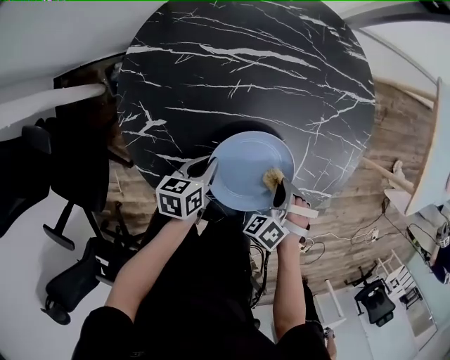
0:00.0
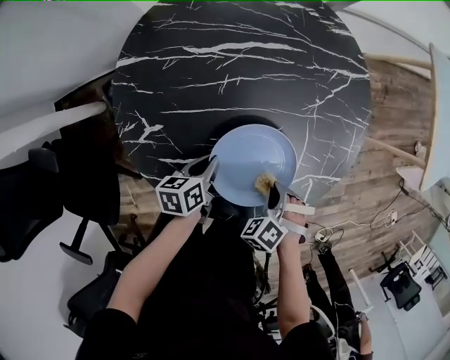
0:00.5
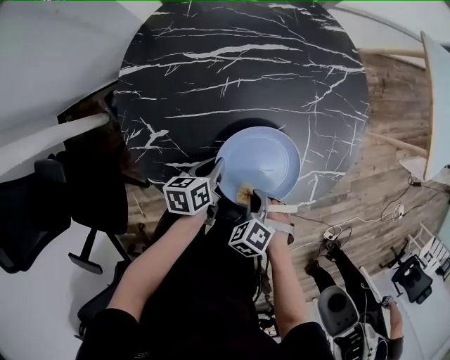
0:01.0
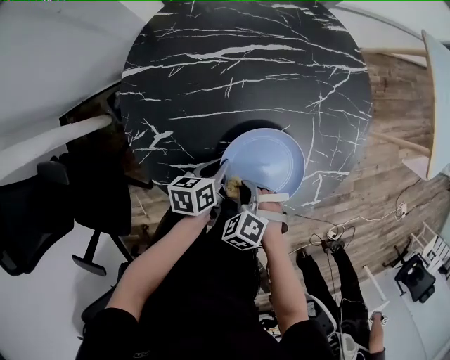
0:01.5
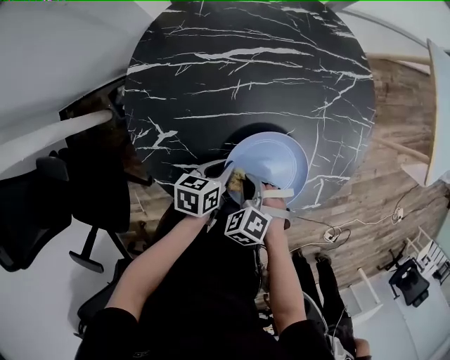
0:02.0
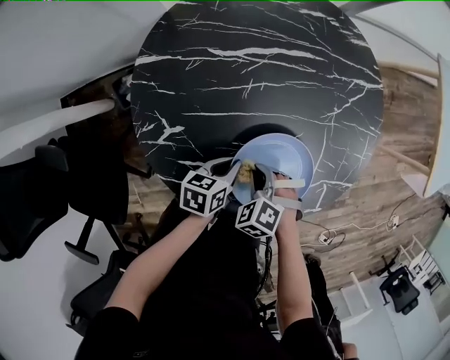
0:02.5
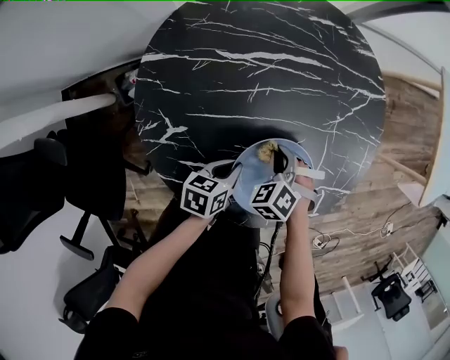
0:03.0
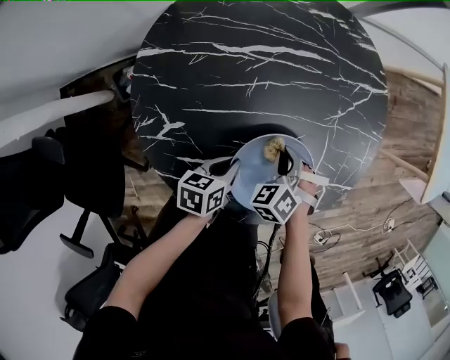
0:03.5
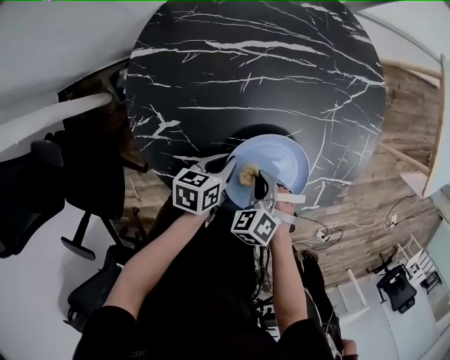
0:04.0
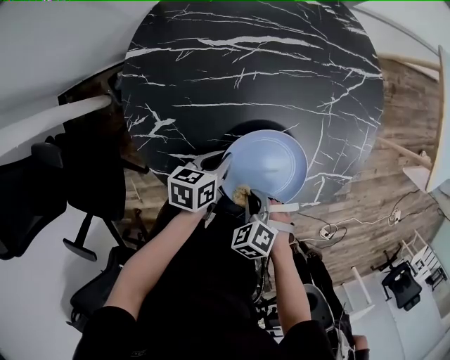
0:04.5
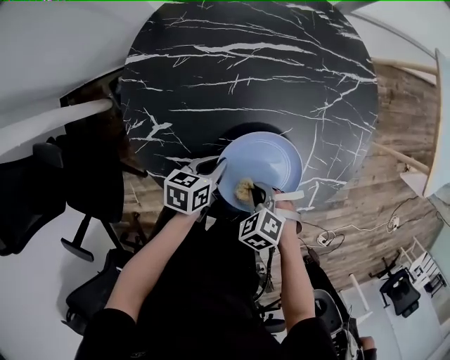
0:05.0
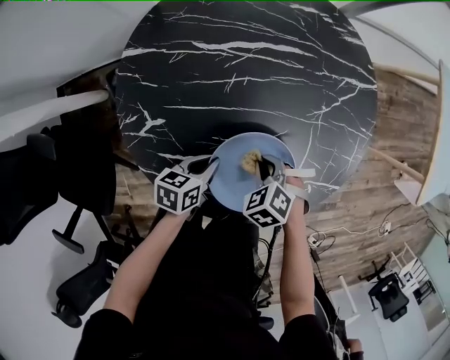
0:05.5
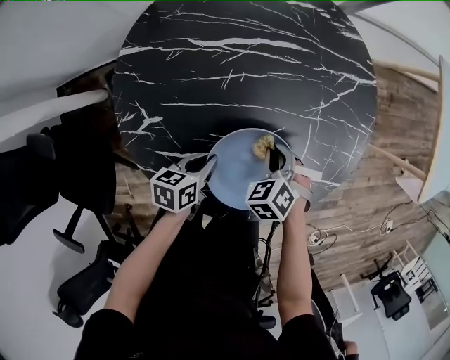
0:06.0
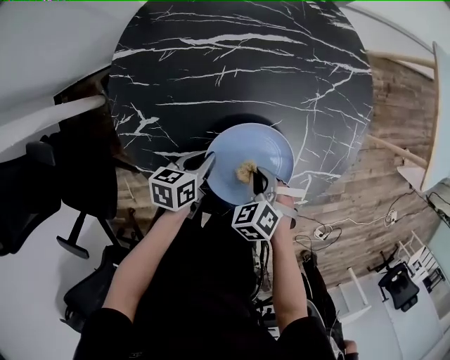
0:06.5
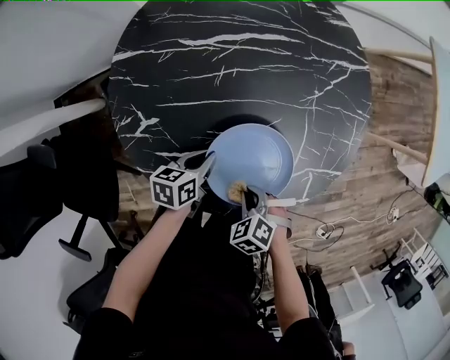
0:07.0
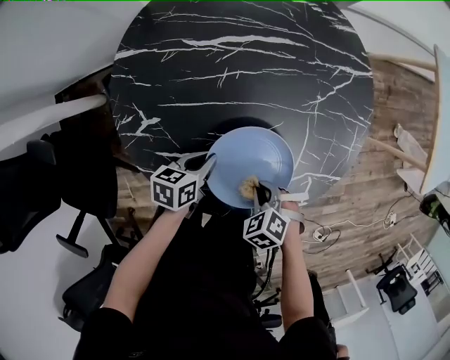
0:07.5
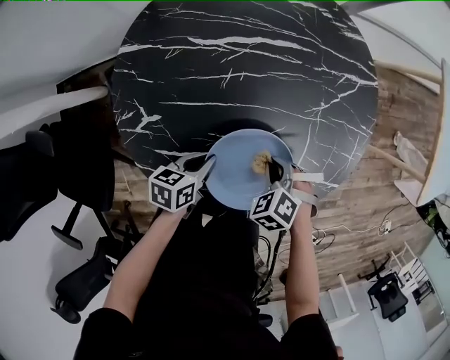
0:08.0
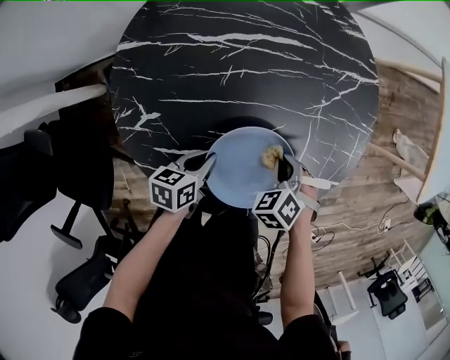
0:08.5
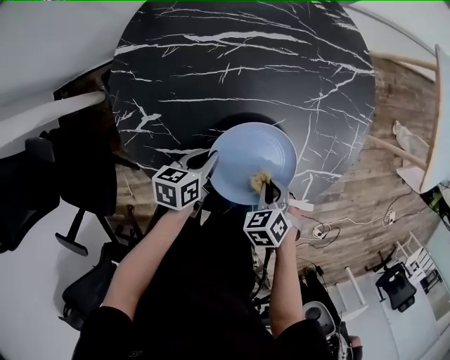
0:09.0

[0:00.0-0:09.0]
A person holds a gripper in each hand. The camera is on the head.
0:00.0 to 0:02.0: The right gripper changes place by some 15 cm, and swivels approximately 20 degrees.

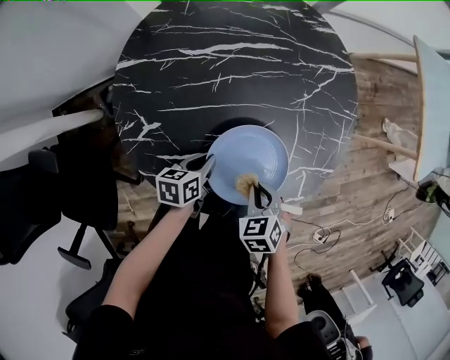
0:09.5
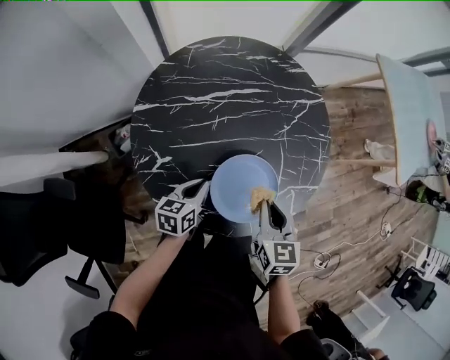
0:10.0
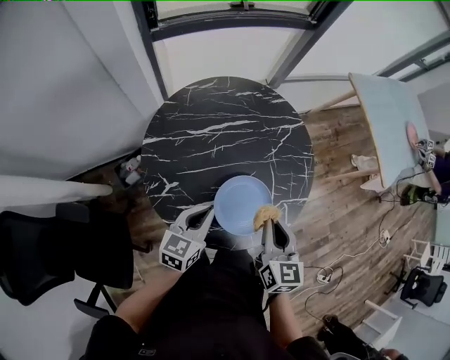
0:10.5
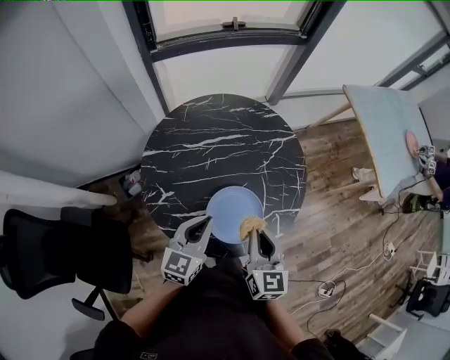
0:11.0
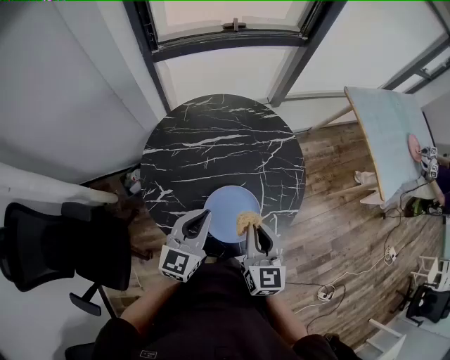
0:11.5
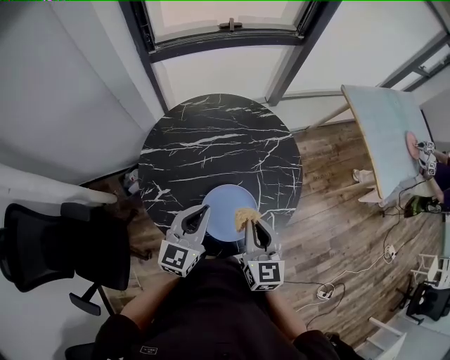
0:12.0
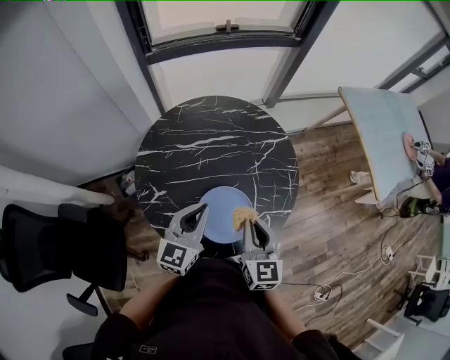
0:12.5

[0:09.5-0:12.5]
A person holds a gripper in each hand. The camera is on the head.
0:09.5 to 0:11.0: Both grippers move upward, about 30 cm. The left gripper rotates about 50 degrees. The right gripper angles its fingers upward, by about 50 degrees.
0:11.0 to 0:12.5: The grippers move only a little.

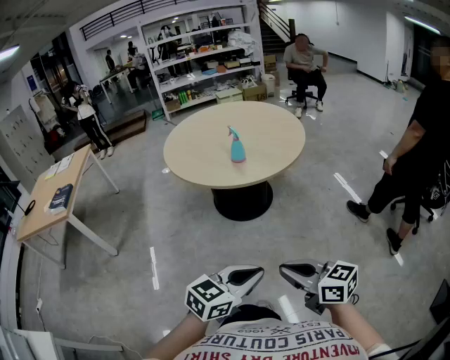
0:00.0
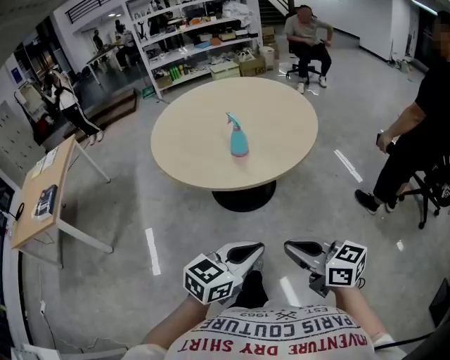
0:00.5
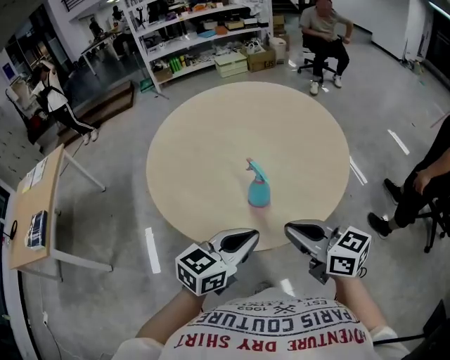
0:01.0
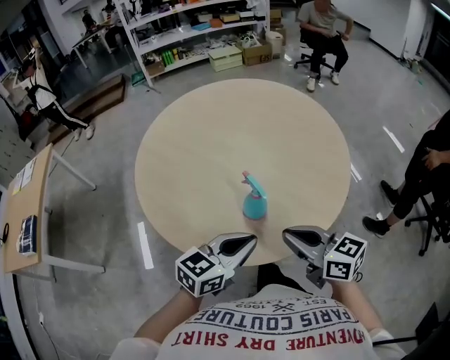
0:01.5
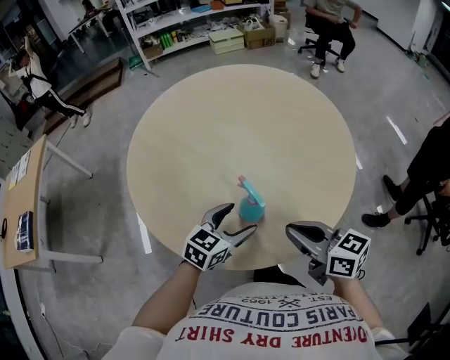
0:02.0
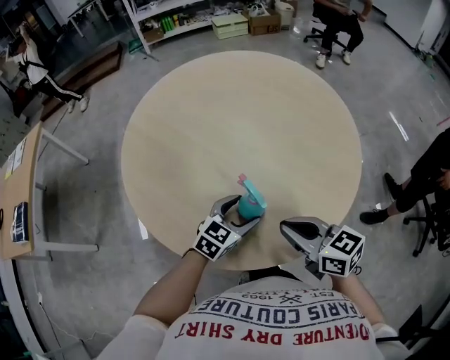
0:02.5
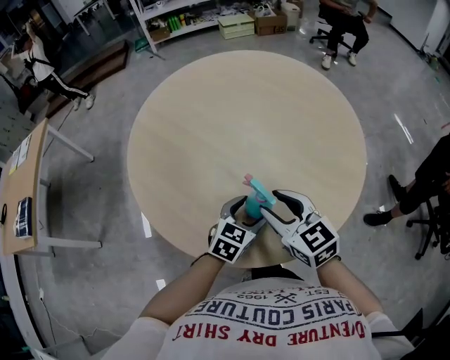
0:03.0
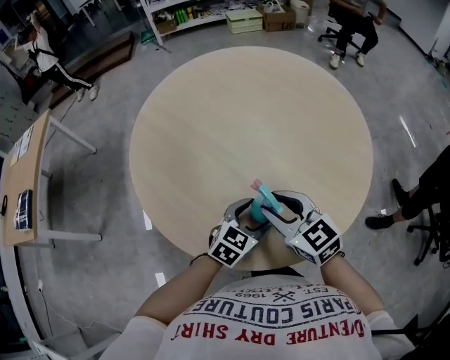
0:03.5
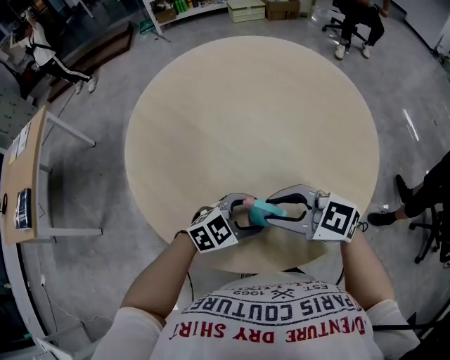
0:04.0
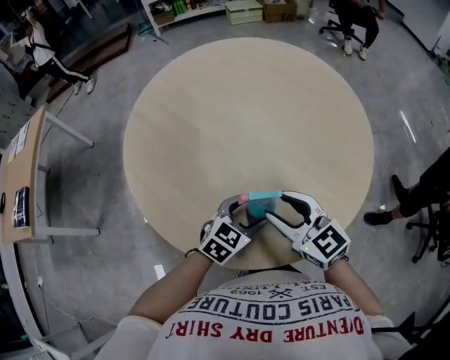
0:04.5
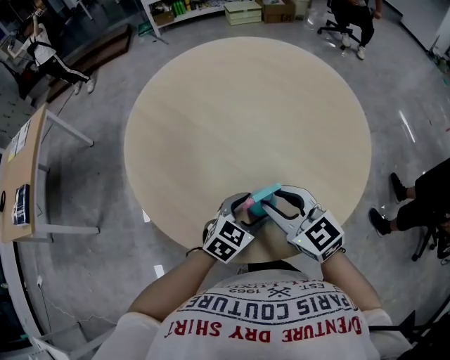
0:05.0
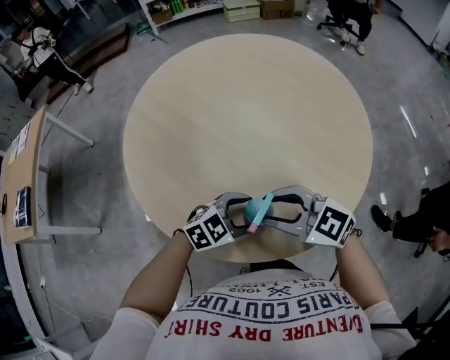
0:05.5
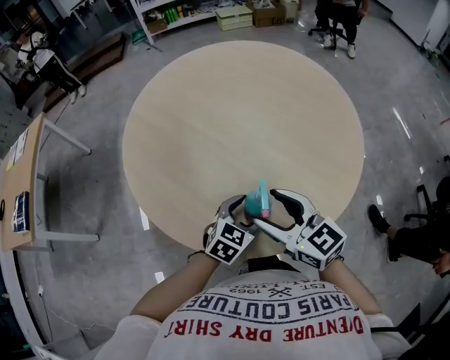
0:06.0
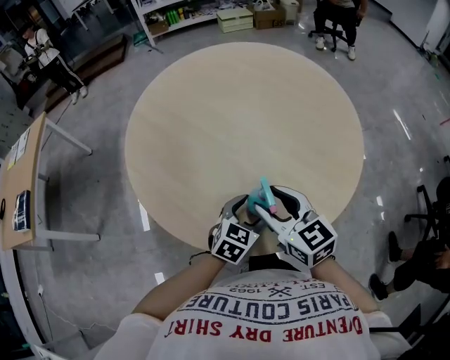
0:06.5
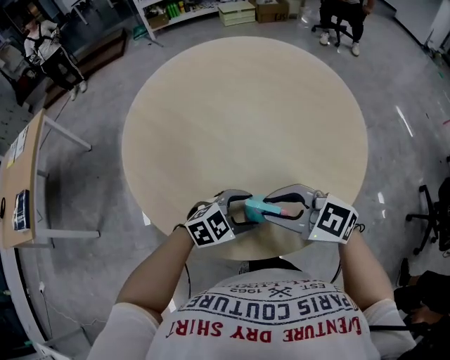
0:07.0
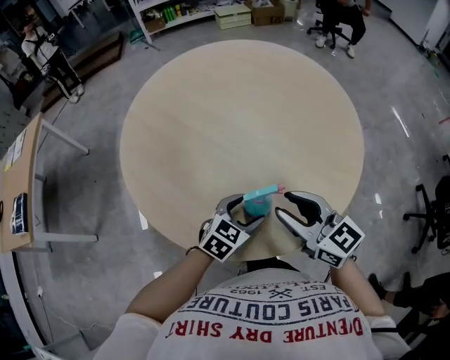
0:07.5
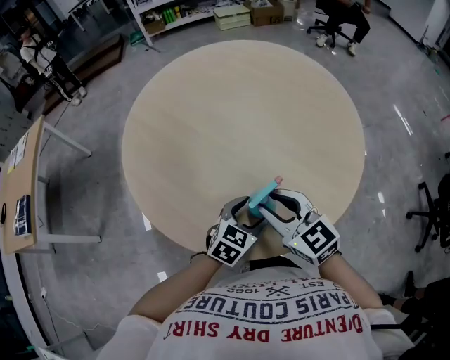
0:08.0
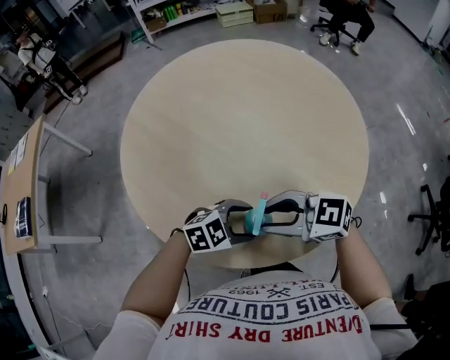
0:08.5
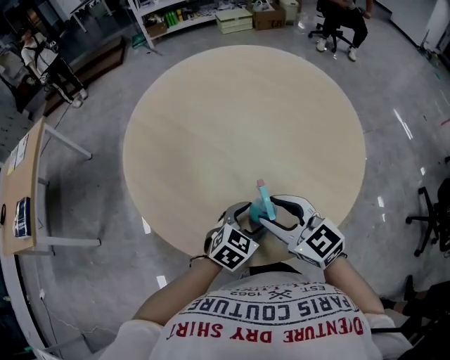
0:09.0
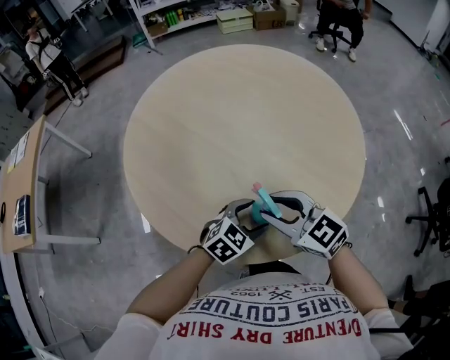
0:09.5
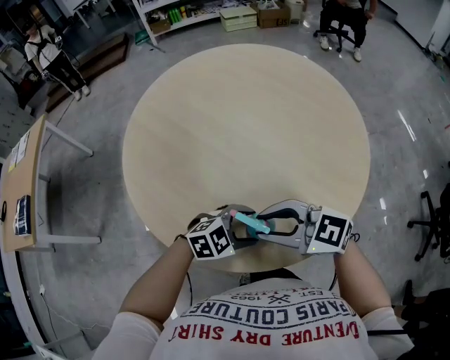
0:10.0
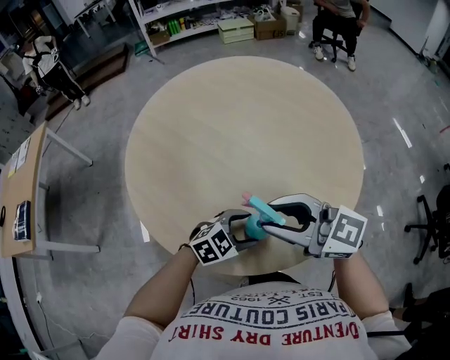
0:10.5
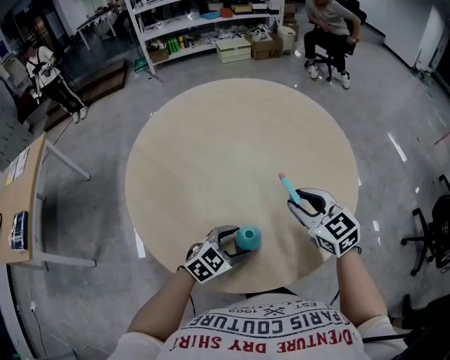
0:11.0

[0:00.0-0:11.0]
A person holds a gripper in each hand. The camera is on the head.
0:00.0 to 0:02.0: The two grippers travel together, forward, about 70 cm. The left gripper opens.
0:02.0 to 0:03.5: The right gripper heads forward and to the left, covering some 10 cm, rotates about 30 degrees, and opens up; the left gripper moves downward, some 5 cm.
0:03.5 to 0:05.5: The left gripper changes its angle by approximately 30 degrees. The right gripper turns by approximately 30 degrees.
0:05.5 to 0:07.5: The right gripper shifts by roughly 5 cm, swivels some 30 degrees, and opens, then closes again. The left gripper changes its angle by approximately 20 degrees.
0:09.0 to 0:11.0: The right gripper reaches approximately 10 cm upward, then returns.

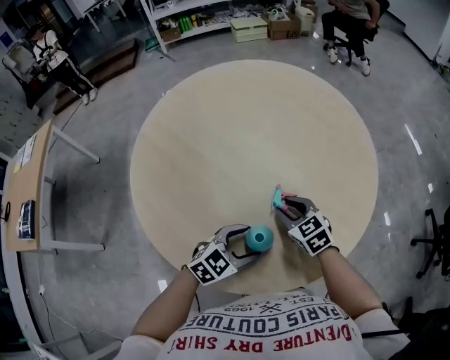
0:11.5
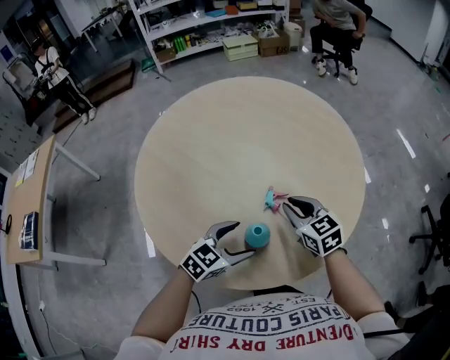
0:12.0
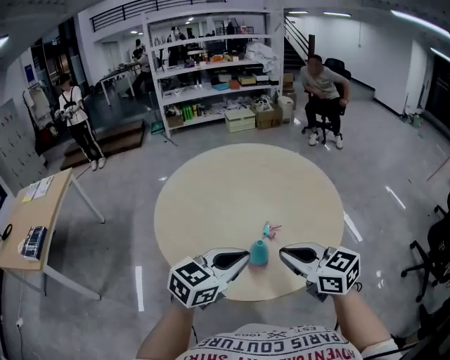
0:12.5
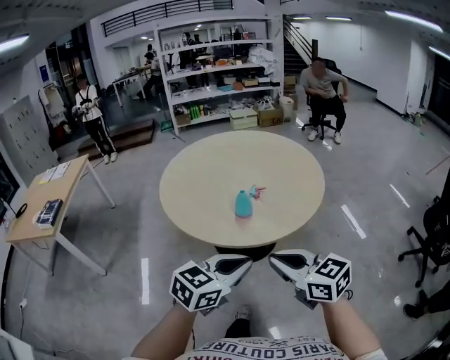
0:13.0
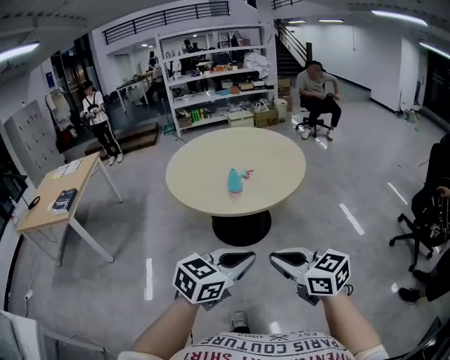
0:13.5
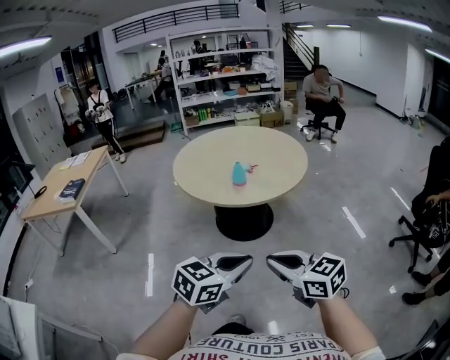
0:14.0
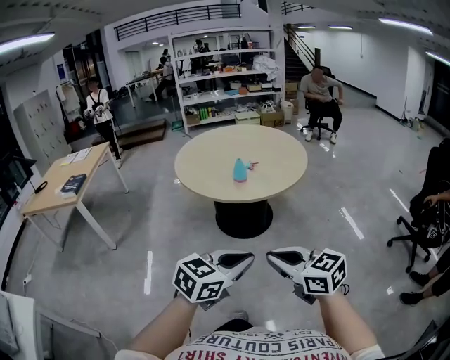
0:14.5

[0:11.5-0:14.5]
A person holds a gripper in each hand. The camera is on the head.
0:11.5 to 0:13.0: The two grippers go approximately 50 cm backward and upward. The right gripper swivels approximately 30 degrees, and closes up. The left gripper rotates approximately 20 degrees, and closes up.
0:13.0 to 0:14.5: Both grippers travel together backward, roughly 30 cm.
